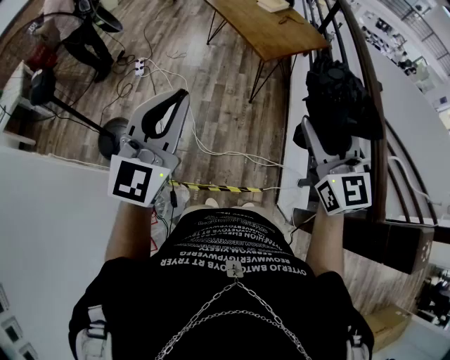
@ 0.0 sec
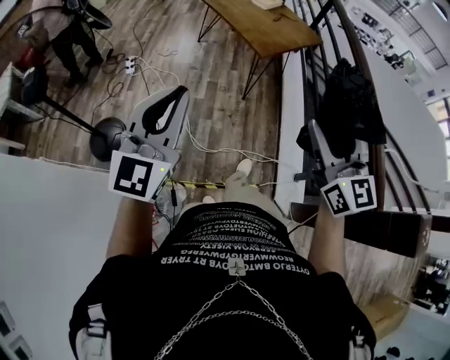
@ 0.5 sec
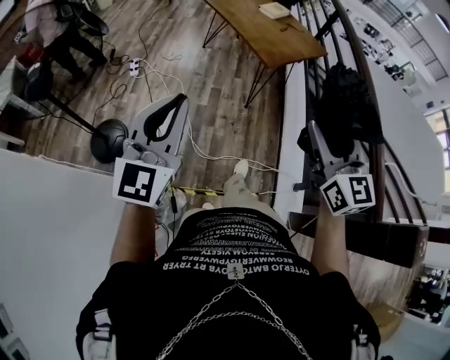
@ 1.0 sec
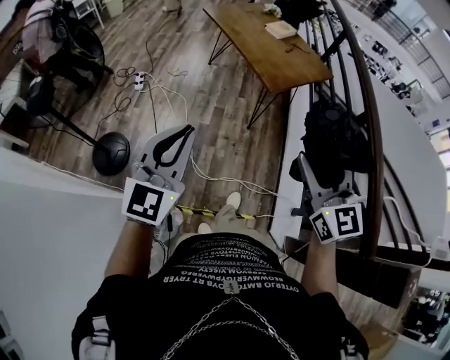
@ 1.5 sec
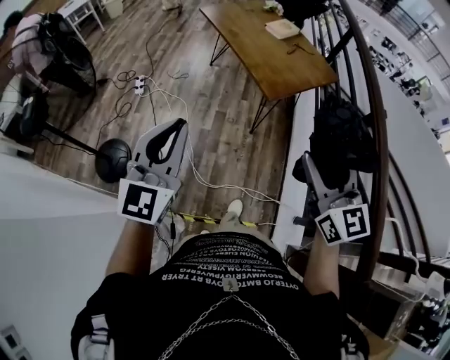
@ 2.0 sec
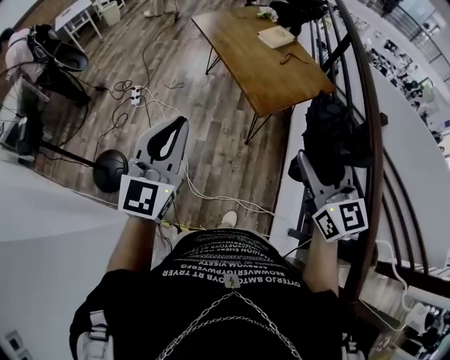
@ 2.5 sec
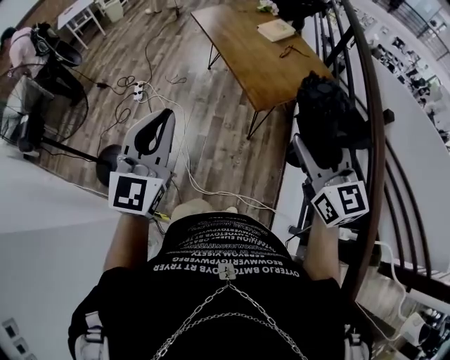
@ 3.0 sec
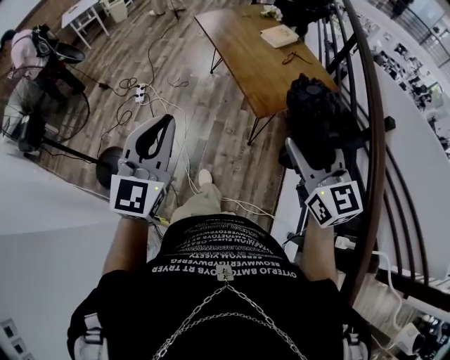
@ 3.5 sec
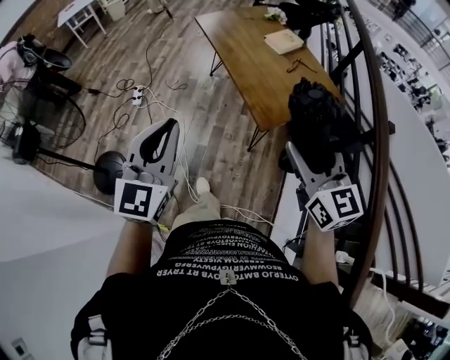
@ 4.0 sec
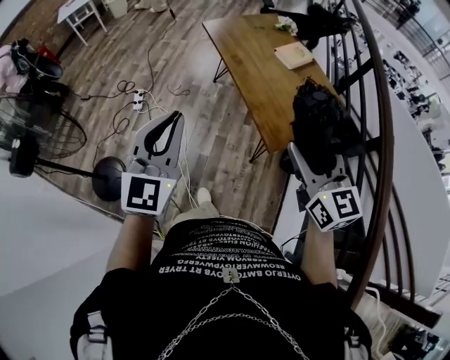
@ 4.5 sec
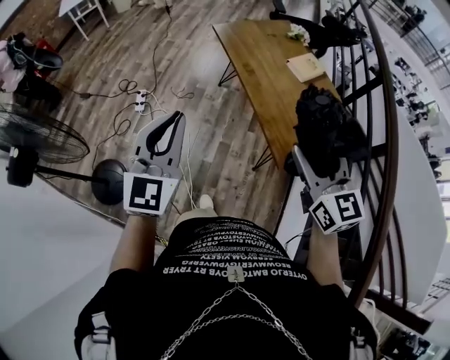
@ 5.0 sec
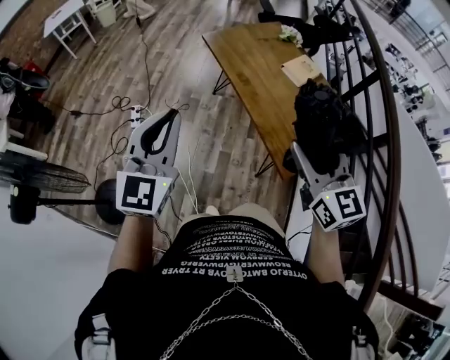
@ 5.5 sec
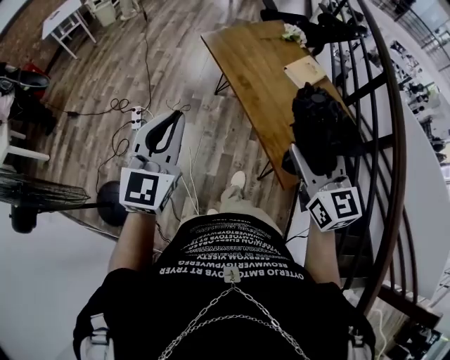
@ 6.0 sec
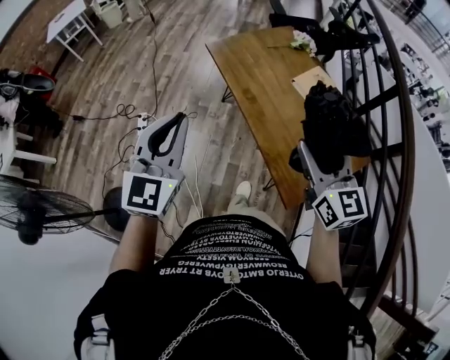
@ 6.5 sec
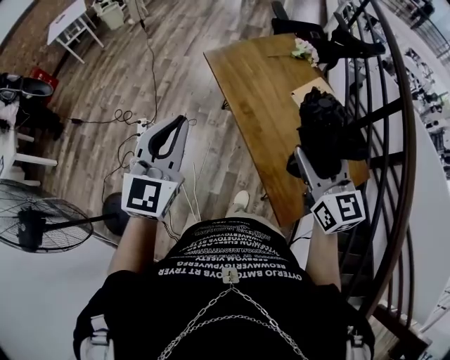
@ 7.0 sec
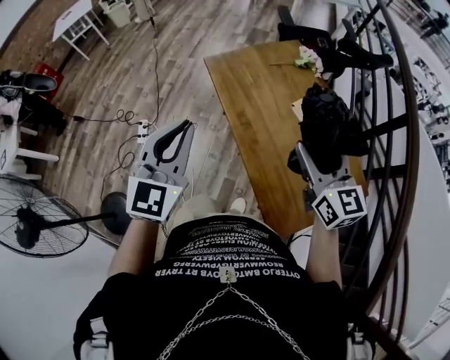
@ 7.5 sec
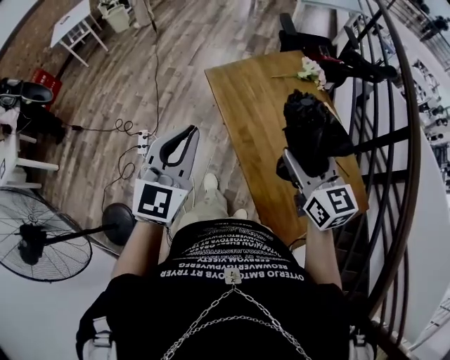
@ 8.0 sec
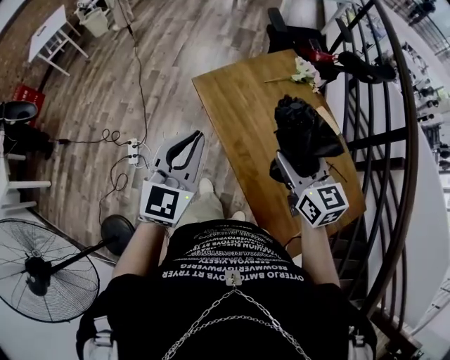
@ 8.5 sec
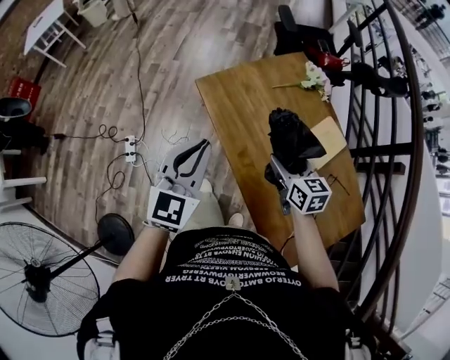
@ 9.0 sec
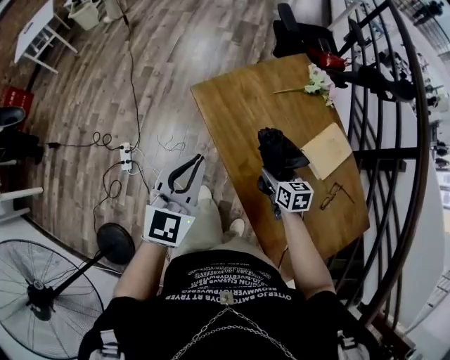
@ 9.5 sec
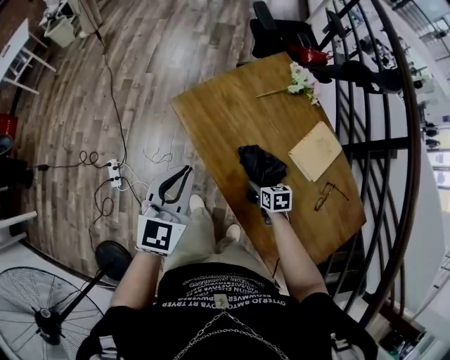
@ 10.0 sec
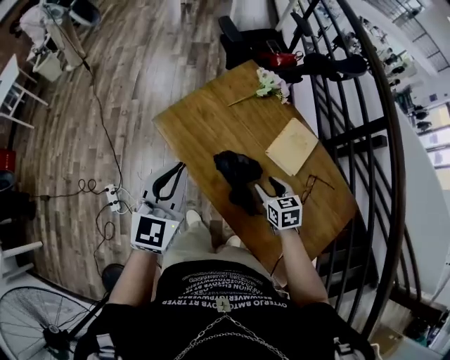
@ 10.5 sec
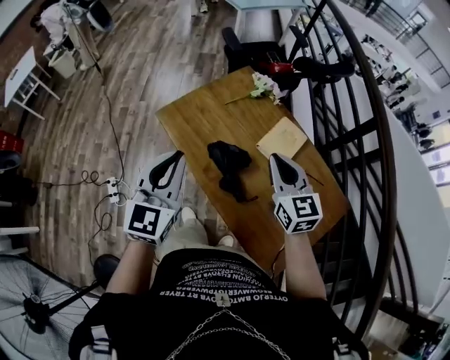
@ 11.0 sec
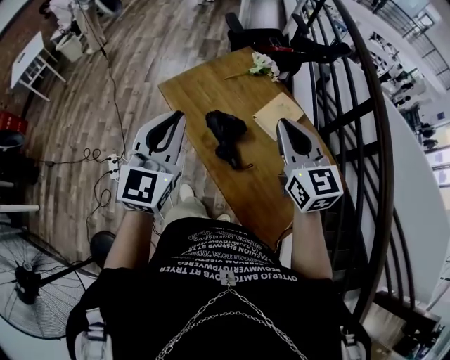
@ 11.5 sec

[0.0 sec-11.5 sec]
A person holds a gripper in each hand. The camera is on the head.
0.0 sec to 2.0 sec: Both grippers move forward, approximately 15 cm.
2.0 sec to 4.0 sec: Both grippers travel together forward, some 20 cm.
4.0 sec to 6.0 sec: Both grippers move forward, some 30 cm.
6.0 sec to 7.5 sec: The right gripper moves forward, roughly 20 cm. Meanwhile the left gripper shifts some 20 cm forward and to the right.
7.5 sec to 9.5 sec: The right gripper shifts roughly 40 cm downward and forward, and points its fingers about 40 degrees further downward; the left gripper heads forward and downward, covering roughly 25 cm.
9.5 sec to 11.5 sec: The right gripper travels upward by approximately 35 cm, points its fingers roughly 30 degrees further upward, and closes; the left gripper goes approximately 20 cm upward, to the right and backward.

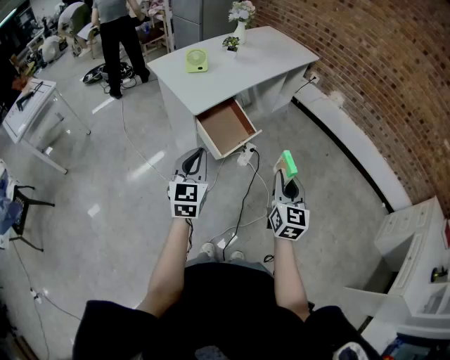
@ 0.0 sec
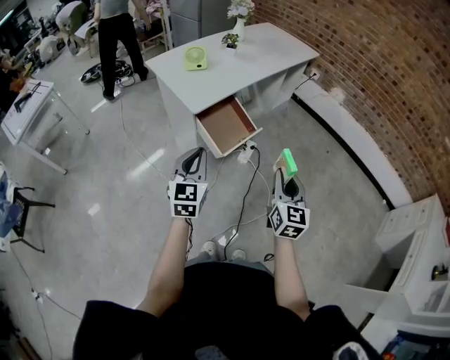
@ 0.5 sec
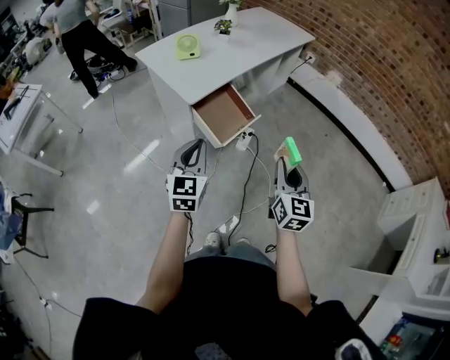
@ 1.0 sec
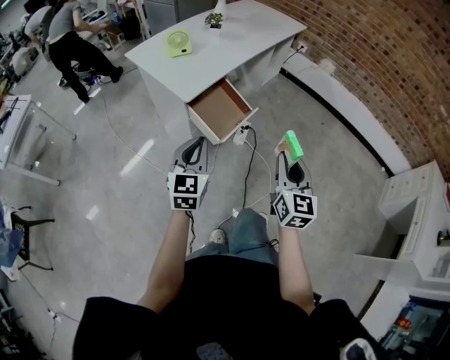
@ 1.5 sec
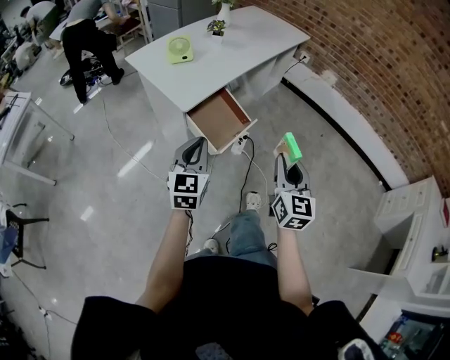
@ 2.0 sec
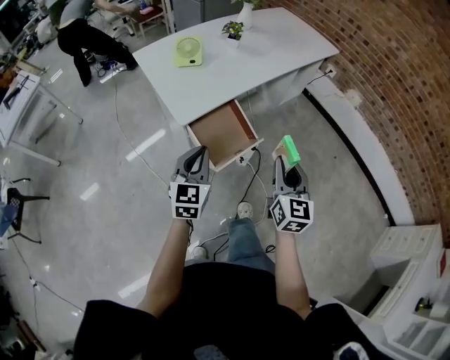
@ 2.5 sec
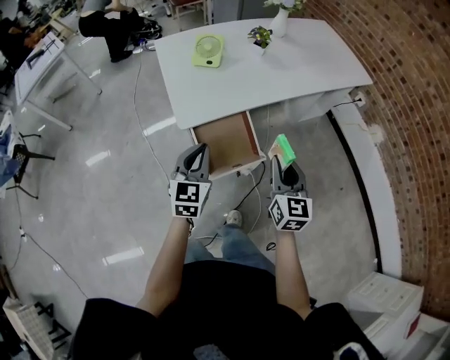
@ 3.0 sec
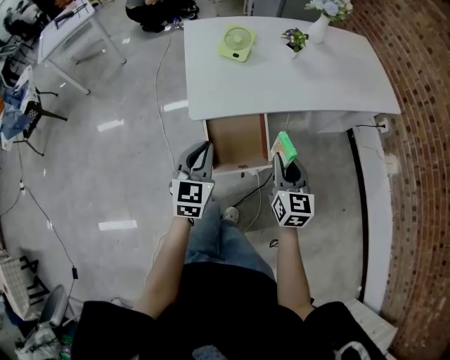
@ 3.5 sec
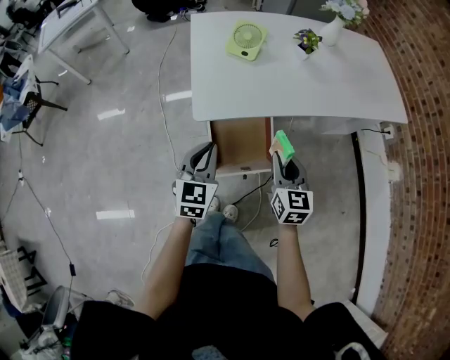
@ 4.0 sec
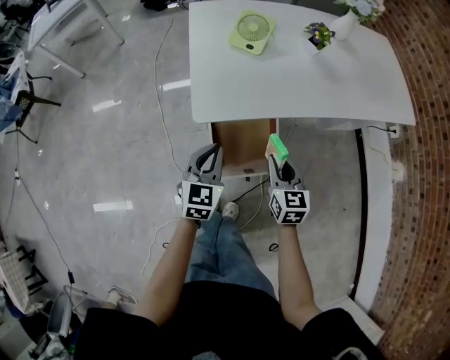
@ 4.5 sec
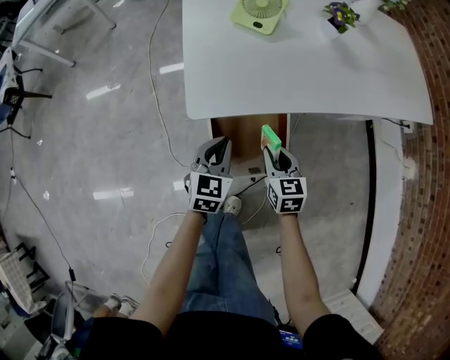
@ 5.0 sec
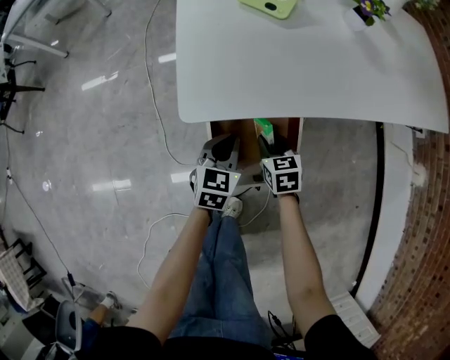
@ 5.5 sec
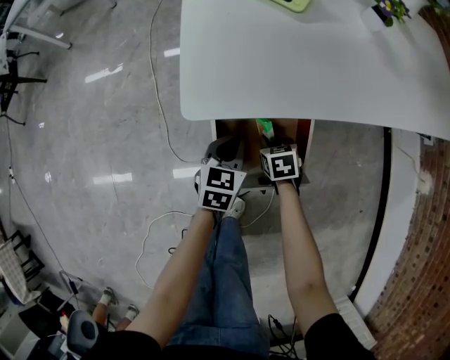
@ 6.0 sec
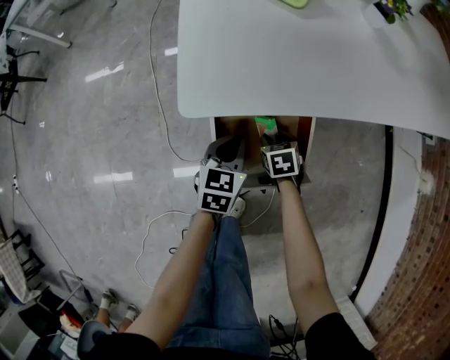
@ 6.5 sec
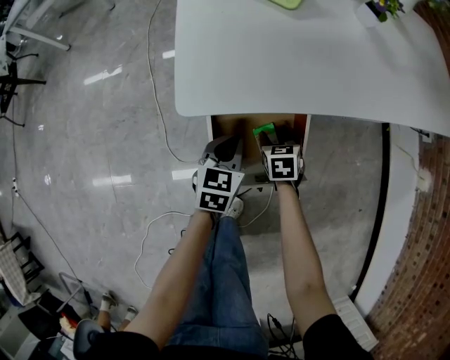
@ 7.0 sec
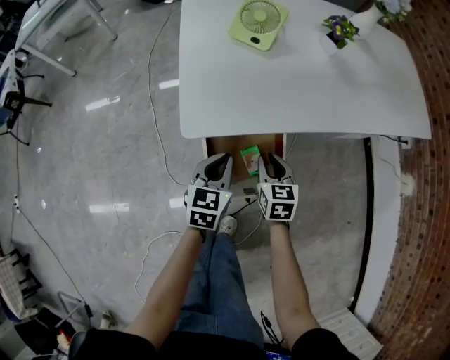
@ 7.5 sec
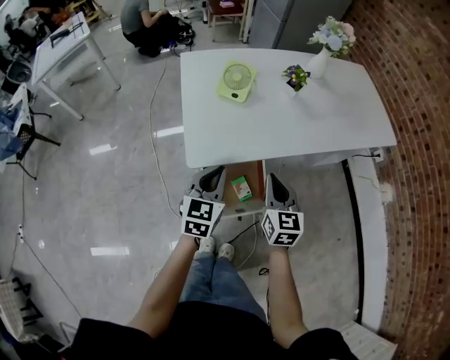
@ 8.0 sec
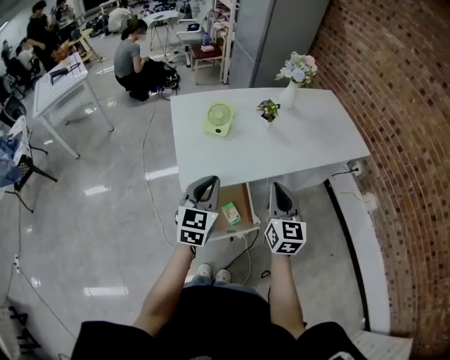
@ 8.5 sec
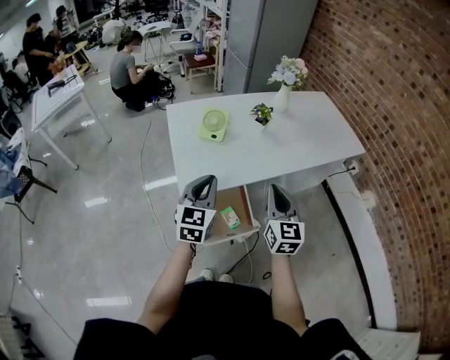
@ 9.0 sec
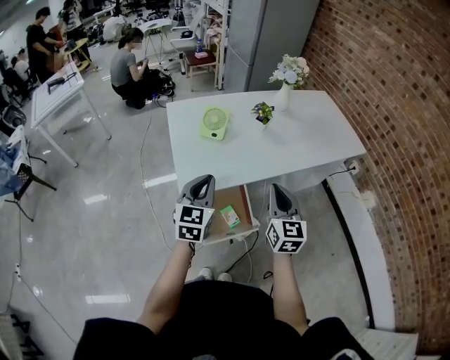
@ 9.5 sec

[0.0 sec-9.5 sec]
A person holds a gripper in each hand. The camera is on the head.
0.0 sec to 2.0 sec: The grippers both shift forward by roughly 10 cm.
2.0 sec to 4.0 sec: The left gripper ends up some 25 cm from where it was, and changes its angle by some 40 degrees, while the right gripper ends up some 40 cm from where it was, and turns by approximately 50 degrees.
4.0 sec to 5.5 sec: Both grippers travel together downward, roughly 30 cm. The right gripper turns by some 30 degrees.
5.5 sec to 7.5 sec: Both grippers travel together upward, some 10 cm. The right gripper opens and closes again.
7.5 sec to 9.5 sec: Both grippers travel together upward, roughly 35 cm. The left gripper rotates about 20 degrees; the right gripper tilts its fingers roughly 30 degrees upward, and closes its fingers.

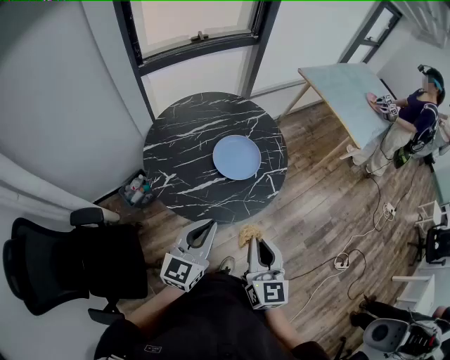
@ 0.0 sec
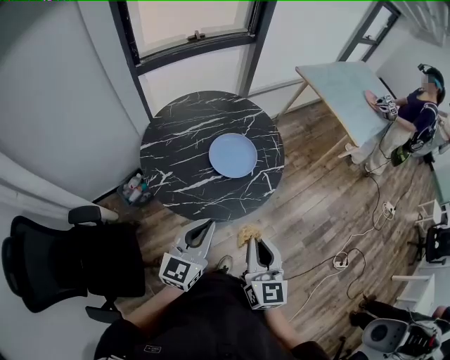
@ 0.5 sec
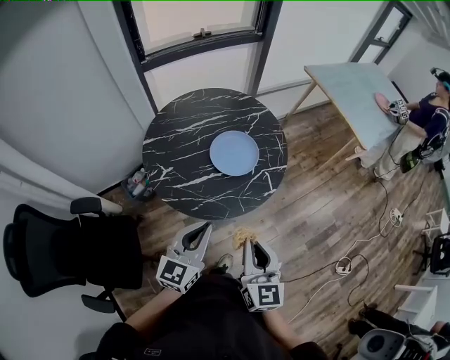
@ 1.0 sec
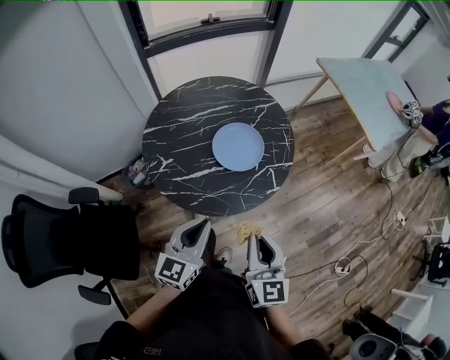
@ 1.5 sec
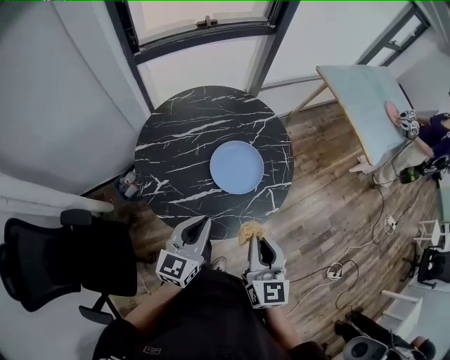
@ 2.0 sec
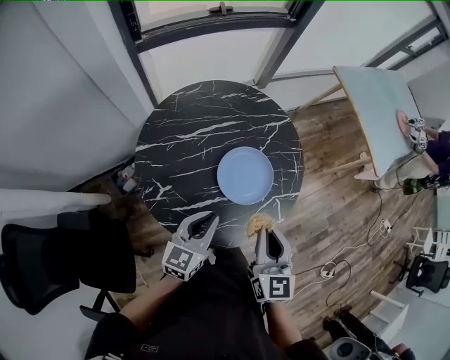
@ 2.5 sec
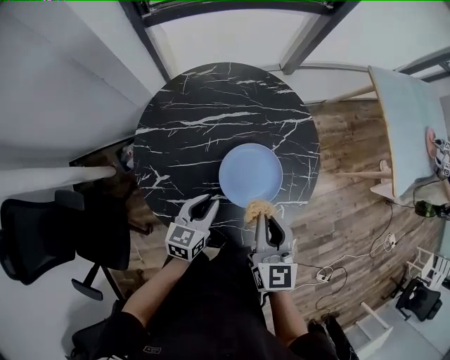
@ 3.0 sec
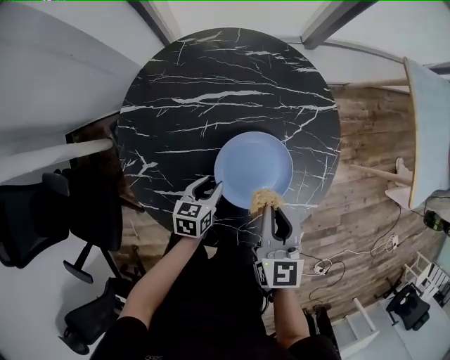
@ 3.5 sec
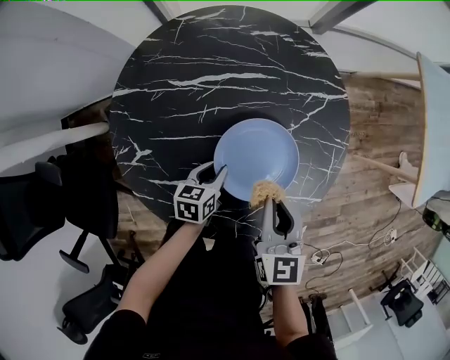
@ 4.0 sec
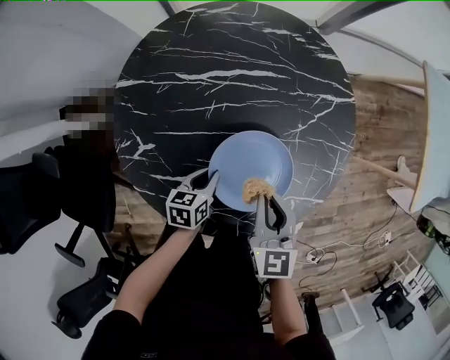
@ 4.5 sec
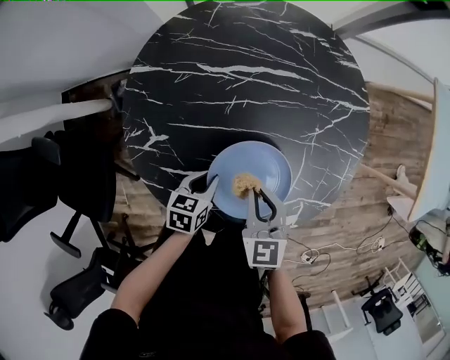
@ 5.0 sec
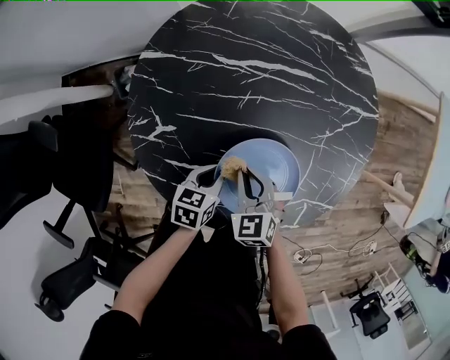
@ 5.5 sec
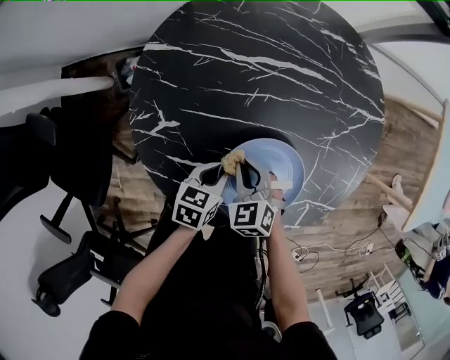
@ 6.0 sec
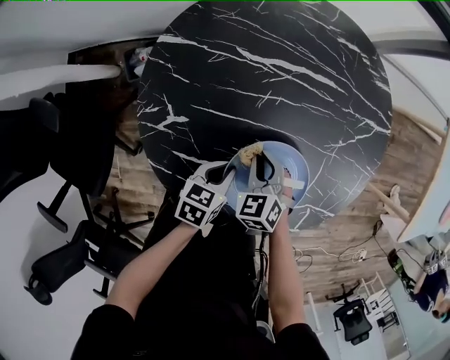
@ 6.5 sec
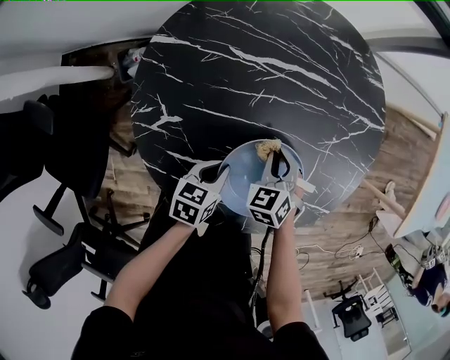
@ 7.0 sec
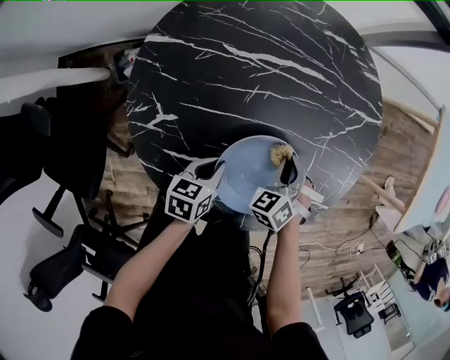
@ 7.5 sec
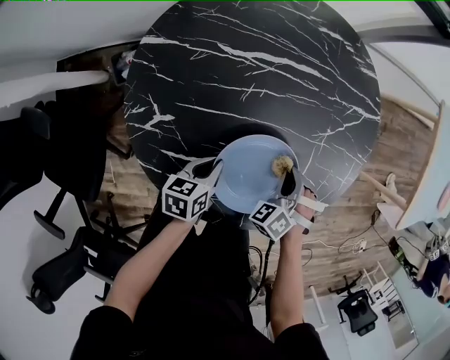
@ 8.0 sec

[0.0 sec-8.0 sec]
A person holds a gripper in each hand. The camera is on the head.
0.0 sec to 2.0 sec: The right gripper travels forward by roughly 15 cm. The left gripper heads forward and downward, covering approximately 15 cm.
2.0 sec to 4.0 sec: The left gripper is displaced downward and forward by approximately 40 cm, angles its fingers downward, by some 40 degrees, and opens its fingers, while the right gripper moves forward and downward, some 30 cm, and changes its angle by roughly 20 degrees.
4.0 sec to 6.0 sec: The right gripper shifts some 25 cm downward and to the left, and changes its angle by some 50 degrees, while the left gripper heads backward and to the left, covering some 10 cm.
6.0 sec to 8.0 sec: The right gripper changes place by some 15 cm, and swivels about 40 degrees.
